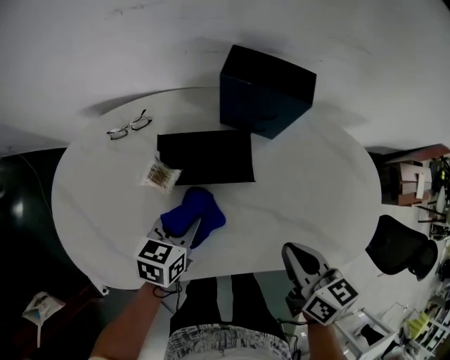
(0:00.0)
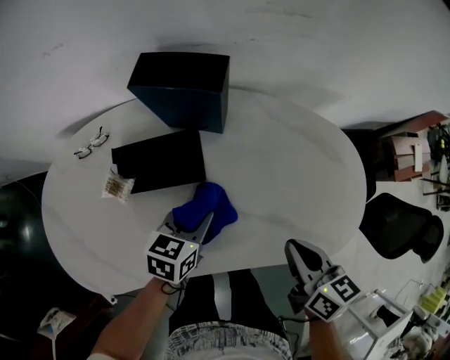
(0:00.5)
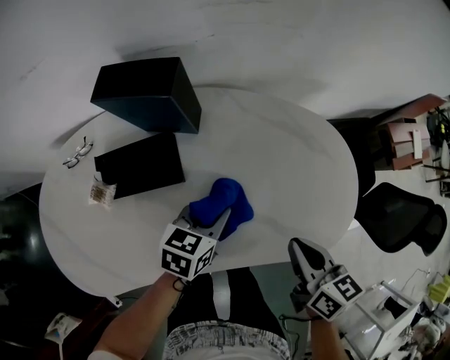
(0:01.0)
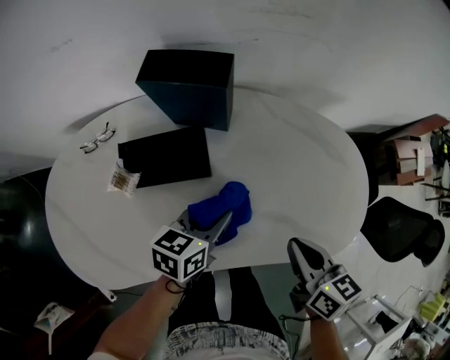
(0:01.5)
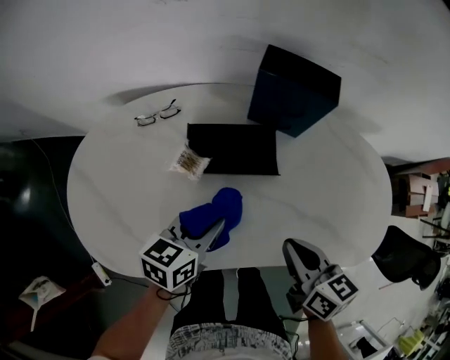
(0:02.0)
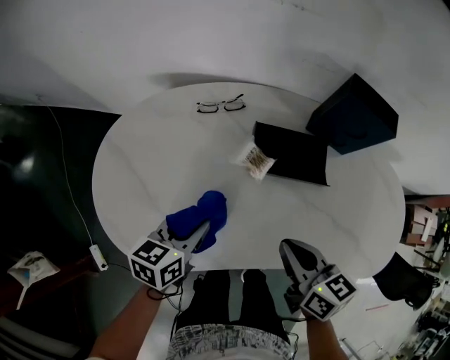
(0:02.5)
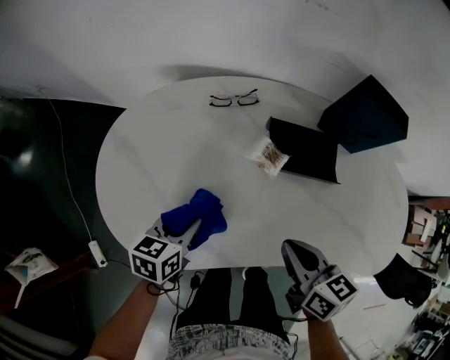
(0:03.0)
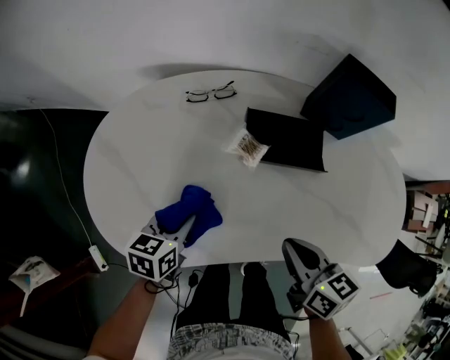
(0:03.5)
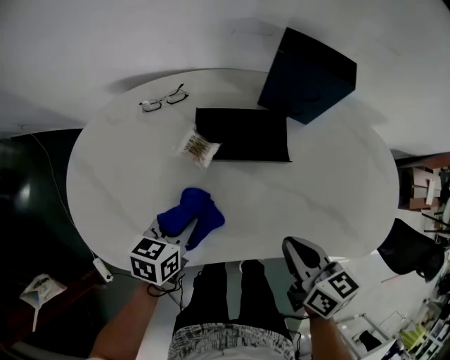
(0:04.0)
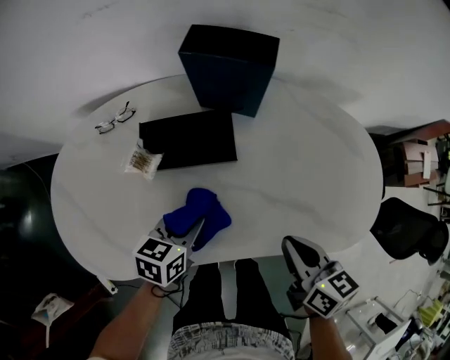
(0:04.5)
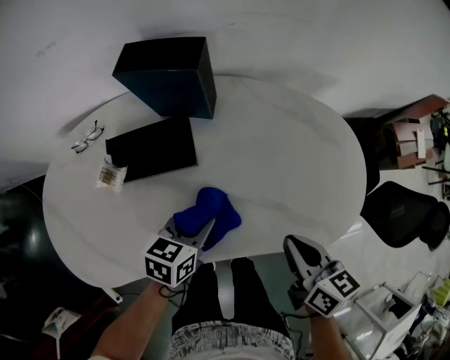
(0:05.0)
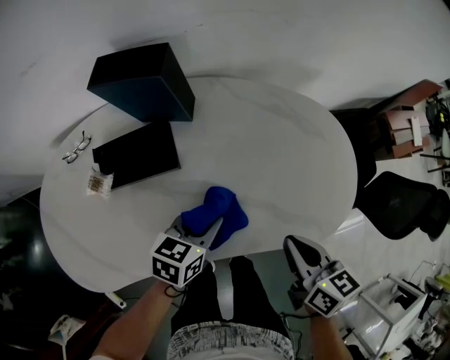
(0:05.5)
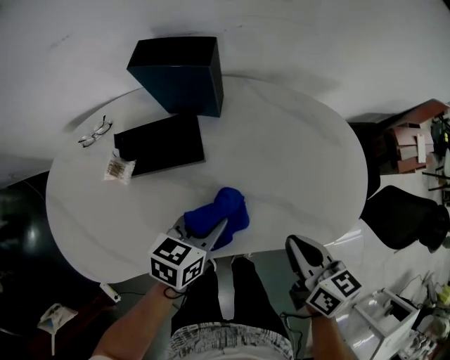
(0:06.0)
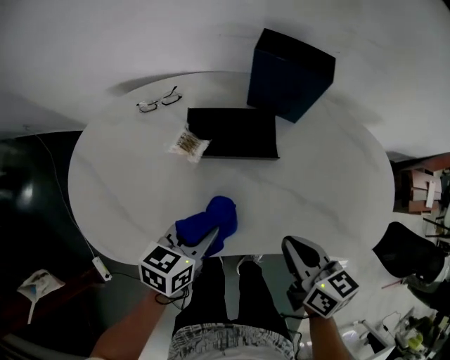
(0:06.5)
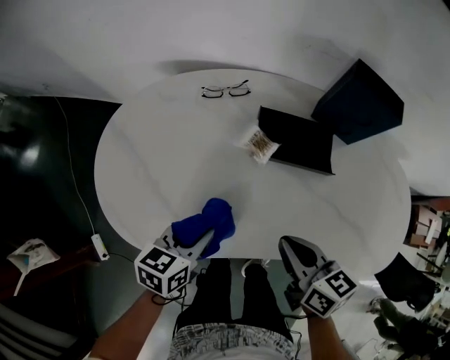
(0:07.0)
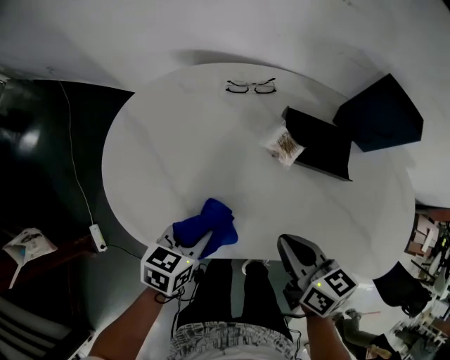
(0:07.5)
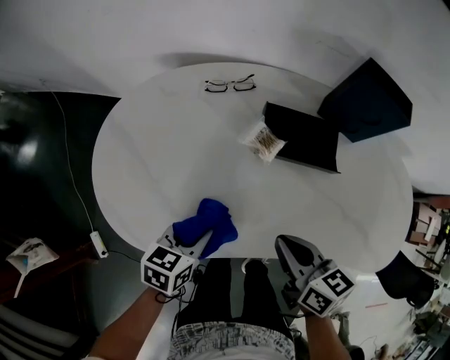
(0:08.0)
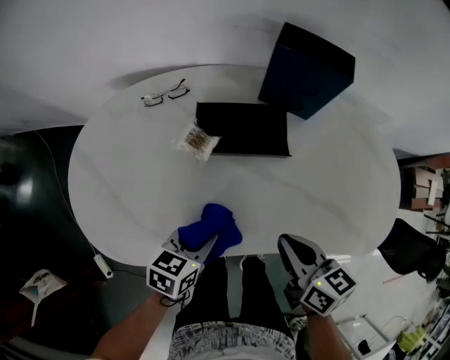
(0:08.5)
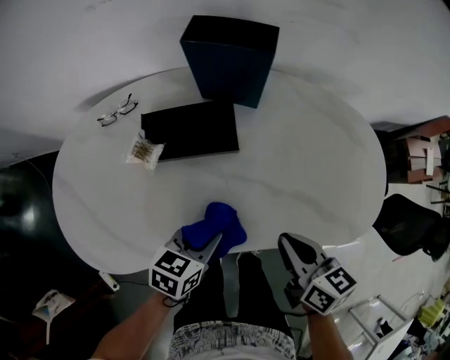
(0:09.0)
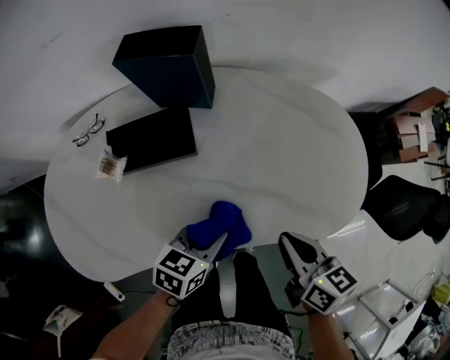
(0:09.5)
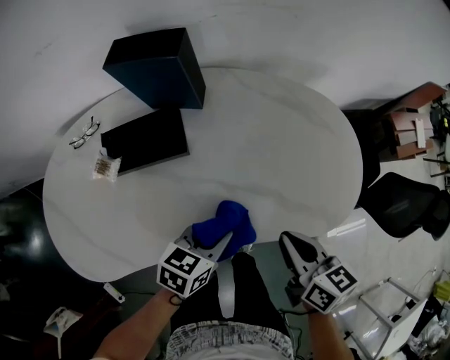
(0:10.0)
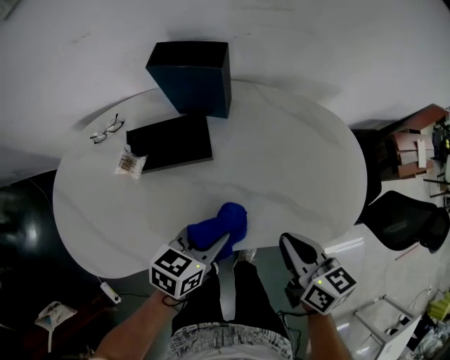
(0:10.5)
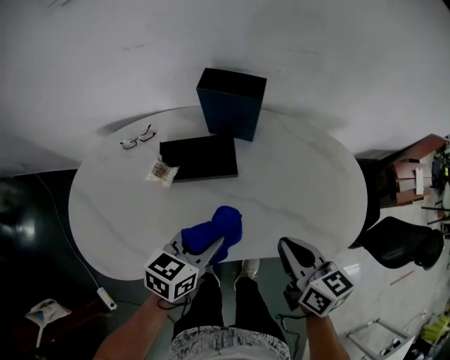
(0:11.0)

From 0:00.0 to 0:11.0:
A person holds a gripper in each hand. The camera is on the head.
From 0:00.0 to 0:02.0: The right gripper goes to the right and returns, approximately 15 cm each way, while the left gripper is displaced upward by about 5 cm, and goes to the right and returns, approximately 25 cm each way.
From 0:02.0 to 0:03.5: The left gripper goes roughly 20 cm to the left; the right gripper shifts approximately 10 cm to the left.
From 0:03.5 to 0:05.5: The left gripper moves approximately 40 cm, and changes its angle by roughly 30 degrees. Meanwhile the right gripper changes place by roughly 30 cm, and turns by about 20 degrees.
From 0:05.5 to 0:07.5: The right gripper changes place by some 35 cm, and changes its angle by some 30 degrees. The left gripper shifts by about 40 cm, and rotates some 30 degrees.
From 0:07.5 to 0:09.0: Both grippers move to the right, approximately 25 cm. The left gripper swivels about 20 degrees. Meanwhile the right gripper rotates some 20 degrees.
From 0:09.0 to 0:11.0: The two grippers go some 10 cm upward. The left gripper reaches about 15 cm to the right, then returns. Meanwhile the right gripper travels to the right and back again, about 10 cm each way.

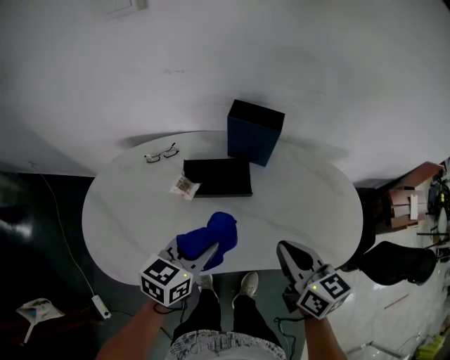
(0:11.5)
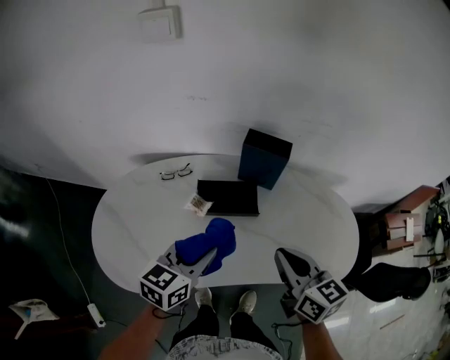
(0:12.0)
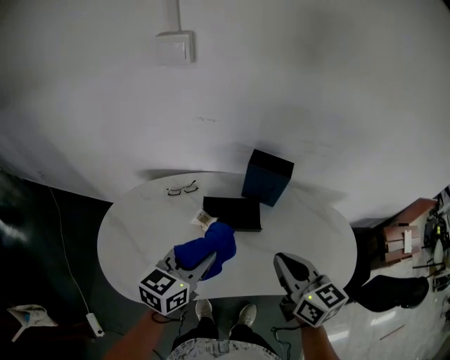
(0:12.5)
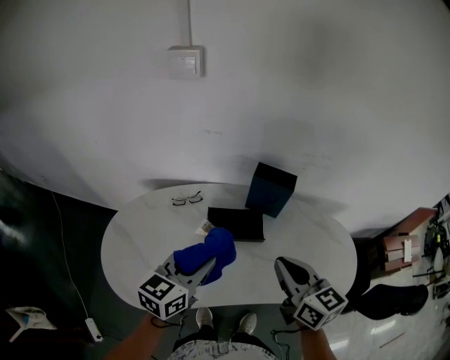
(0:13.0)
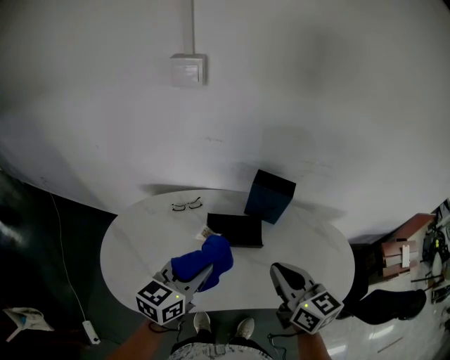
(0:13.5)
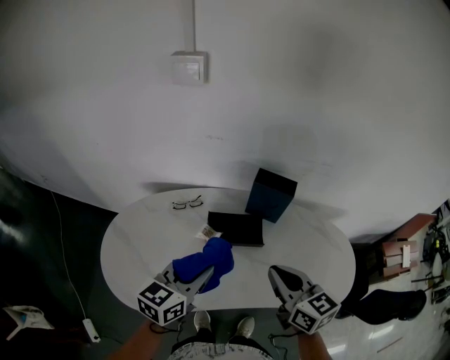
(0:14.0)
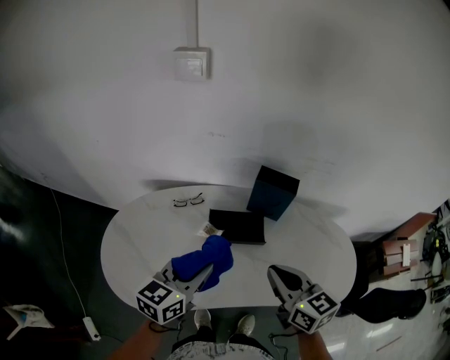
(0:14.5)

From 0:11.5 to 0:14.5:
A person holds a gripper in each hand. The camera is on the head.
From 0:11.5 to 0:13.0: Both grippers move upward and to the left, roughly 15 cm.
From 0:13.0 to 0:14.5: The grippers stay close to where they were, moving slightly.

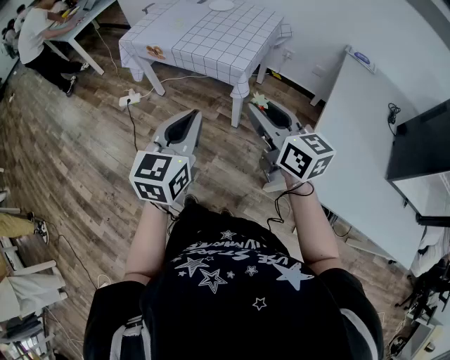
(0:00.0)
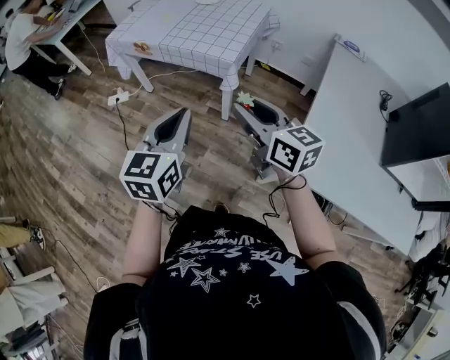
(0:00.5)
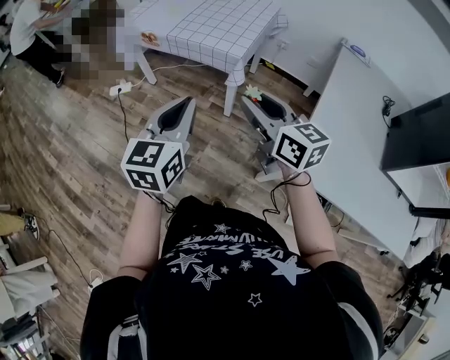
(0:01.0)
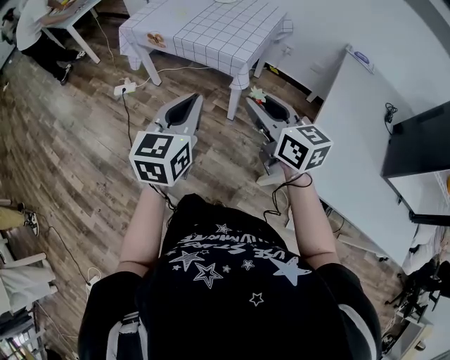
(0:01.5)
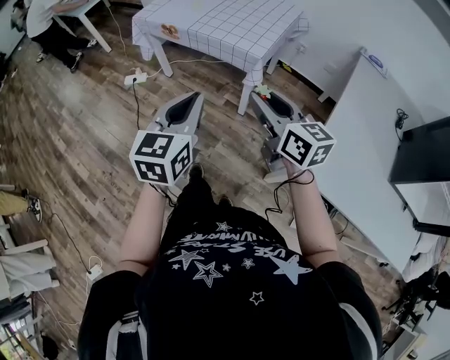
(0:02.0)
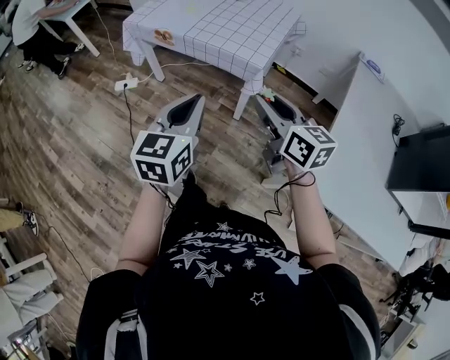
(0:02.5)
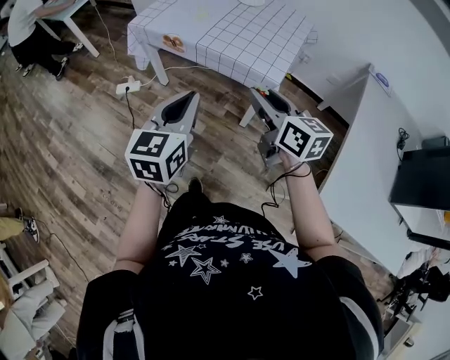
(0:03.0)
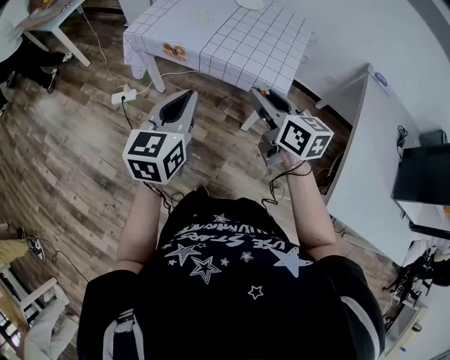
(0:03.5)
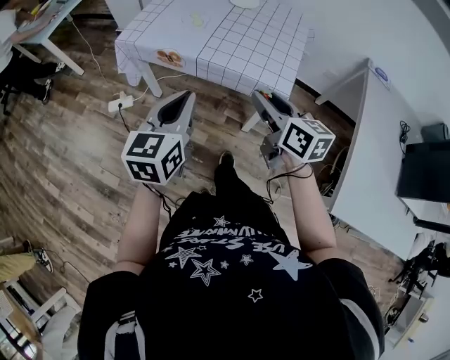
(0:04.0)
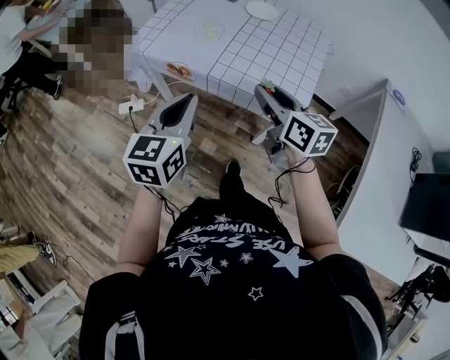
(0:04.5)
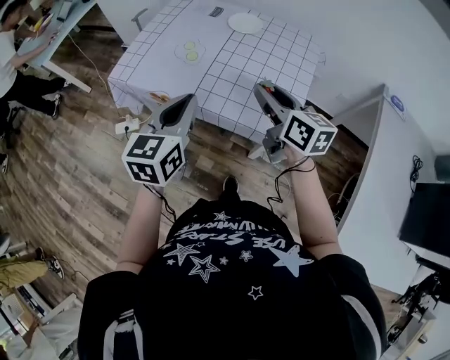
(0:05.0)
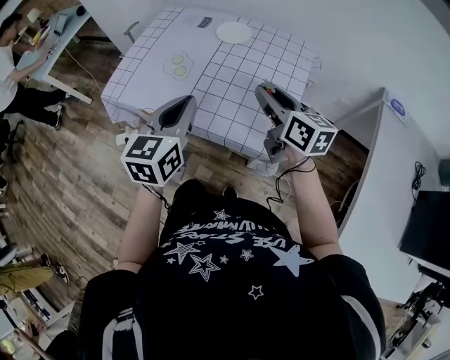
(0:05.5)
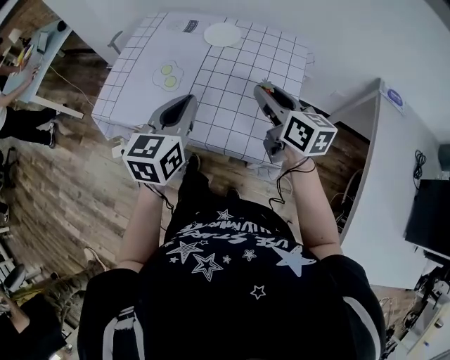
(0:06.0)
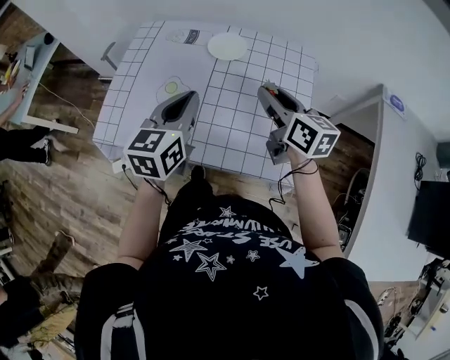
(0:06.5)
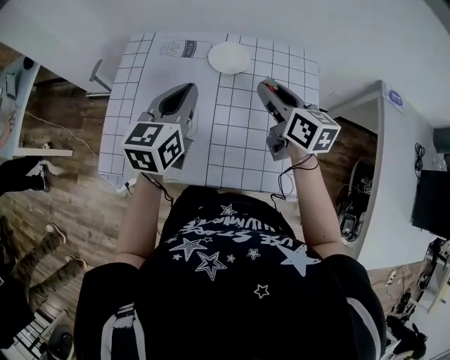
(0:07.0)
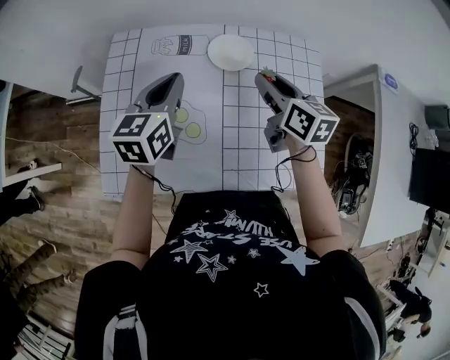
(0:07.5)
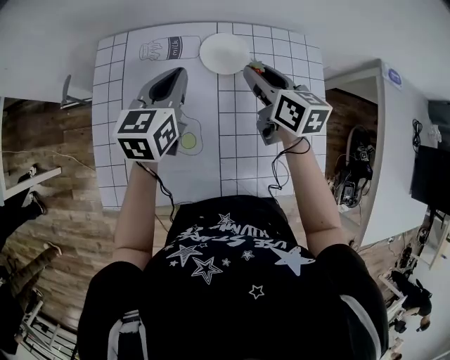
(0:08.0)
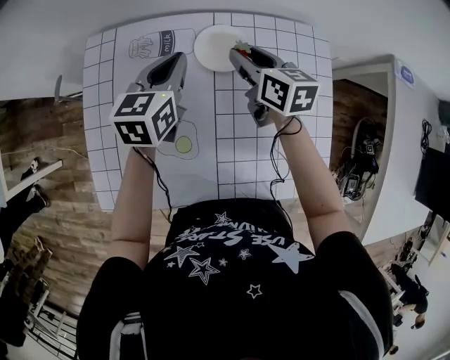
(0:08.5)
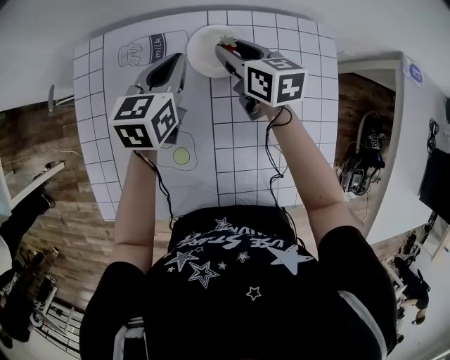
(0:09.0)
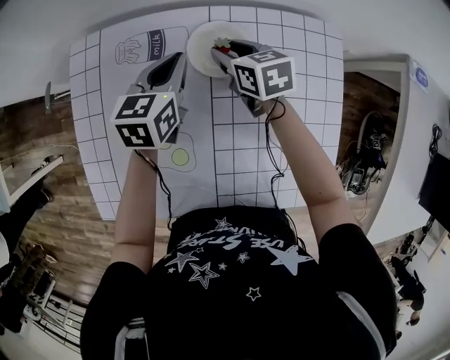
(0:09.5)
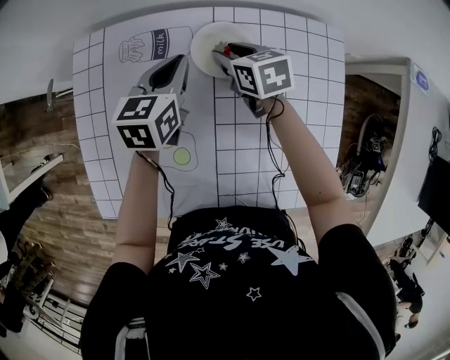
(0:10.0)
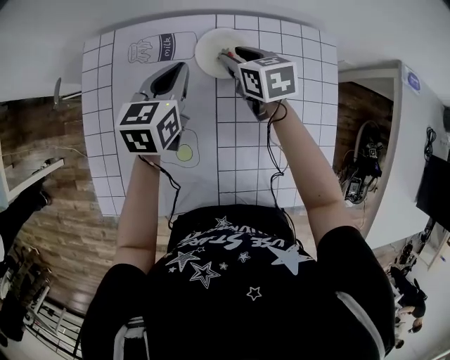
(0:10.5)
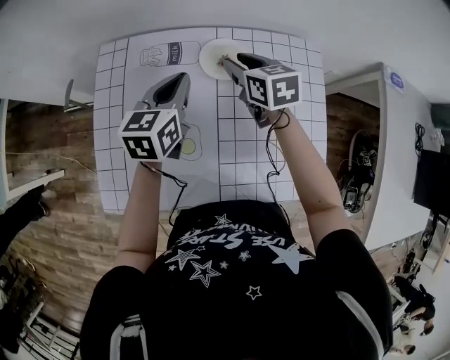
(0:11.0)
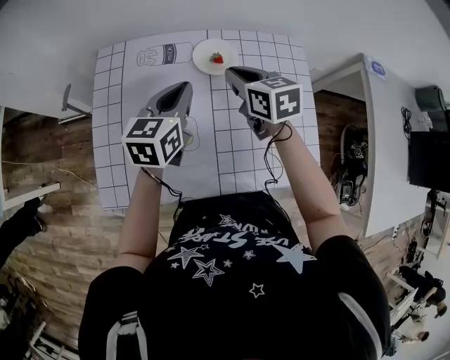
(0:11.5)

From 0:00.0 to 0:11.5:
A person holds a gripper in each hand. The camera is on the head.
From 0:00.0 to 0:02.0: The left gripper changes place by roughly 5 cm, while the right gripper moves about 5 cm.
From 0:02.0 to 0:04.0: Both grippers move forward and to the left, approximately 30 cm.
From 0:04.0 to 0:06.0: The right gripper travels forward and to the right by approximately 30 cm. The left gripper moves forward, approximately 30 cm.
From 0:06.0 to 0:07.5: The two grippers go some 25 cm forward and to the left. The right gripper changes its angle by approximately 20 degrees.
From 0:07.5 to 0:09.5: The right gripper travels downward and forward by roughly 20 cm, and rotates roughly 20 degrees. The left gripper goes about 20 cm forward, downward and to the right.
From 0:09.5 to 0:11.5: The left gripper shifts approximately 15 cm backward and upward; the right gripper is displaced upward and backward by about 20 cm, and closes up.

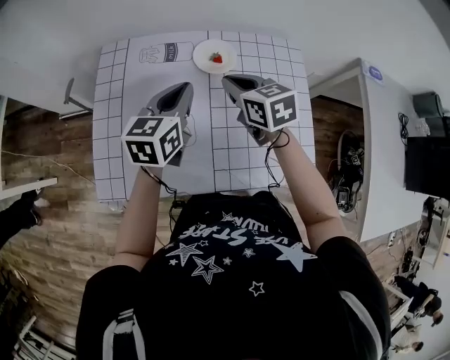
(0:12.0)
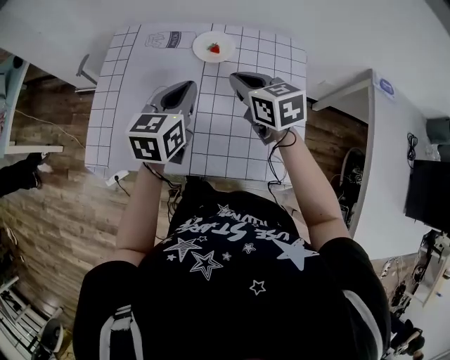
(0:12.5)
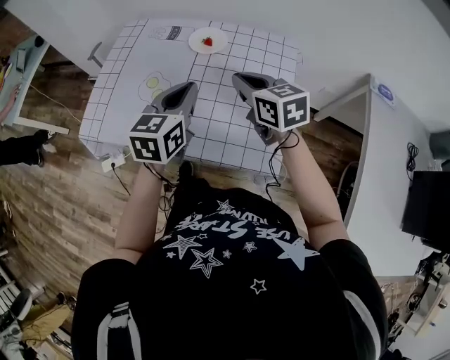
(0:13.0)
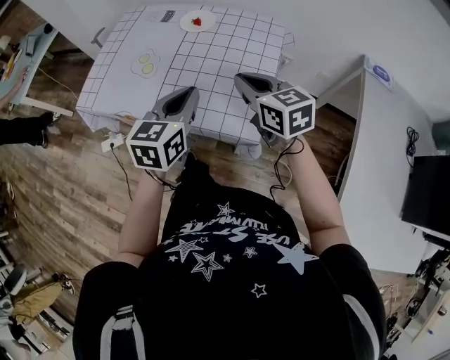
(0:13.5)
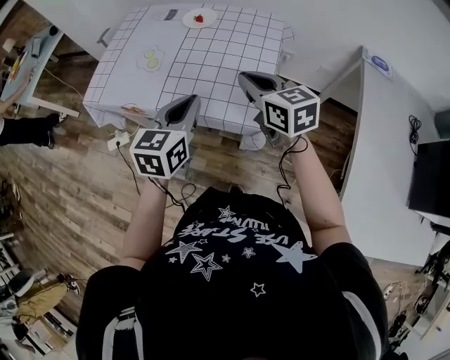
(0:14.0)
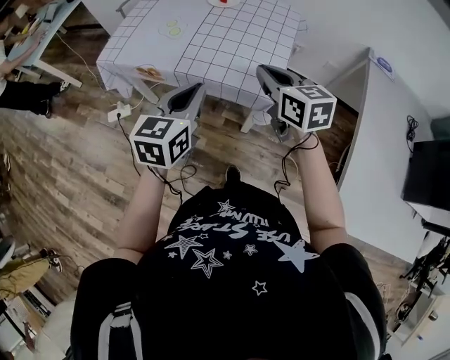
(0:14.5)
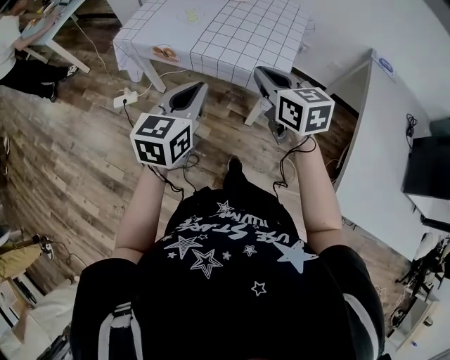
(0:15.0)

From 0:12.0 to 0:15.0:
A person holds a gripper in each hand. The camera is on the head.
From 0:12.0 to 0:13.5: The two grippers go roughly 30 cm backward and to the right. The right gripper changes its angle by roughly 20 degrees.
From 0:13.5 to 0:15.0: Both grippers travel together backward and upward, some 15 cm.
